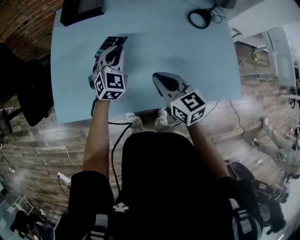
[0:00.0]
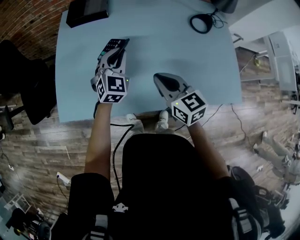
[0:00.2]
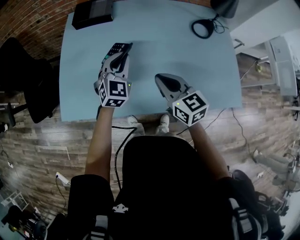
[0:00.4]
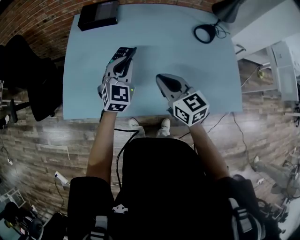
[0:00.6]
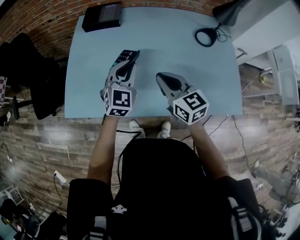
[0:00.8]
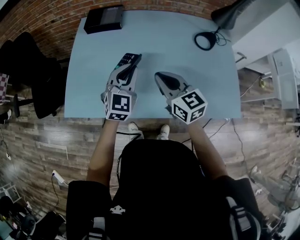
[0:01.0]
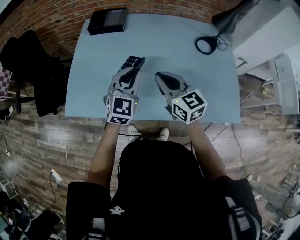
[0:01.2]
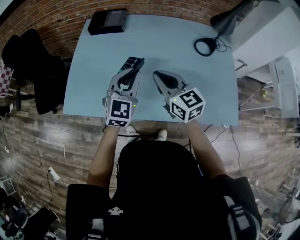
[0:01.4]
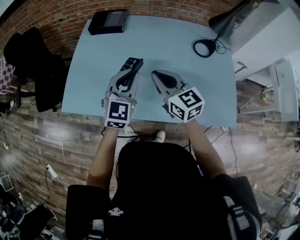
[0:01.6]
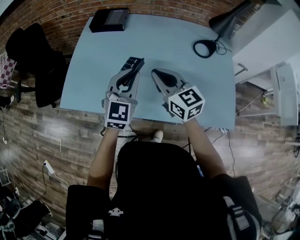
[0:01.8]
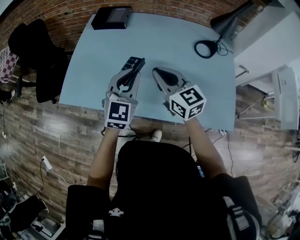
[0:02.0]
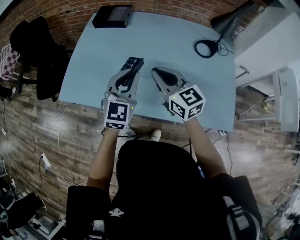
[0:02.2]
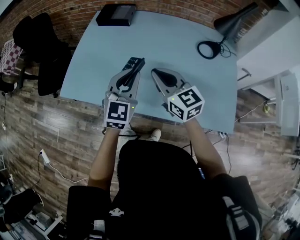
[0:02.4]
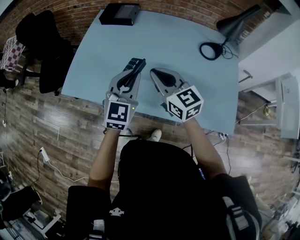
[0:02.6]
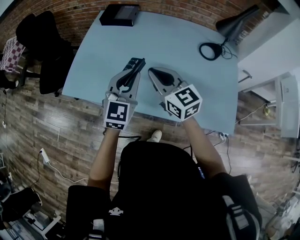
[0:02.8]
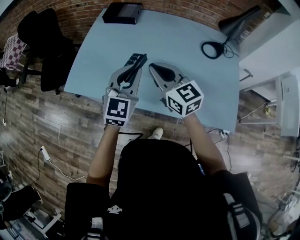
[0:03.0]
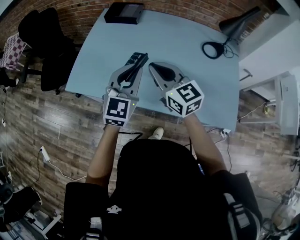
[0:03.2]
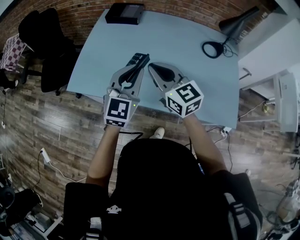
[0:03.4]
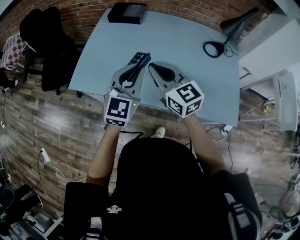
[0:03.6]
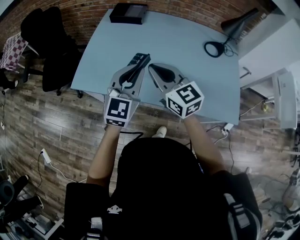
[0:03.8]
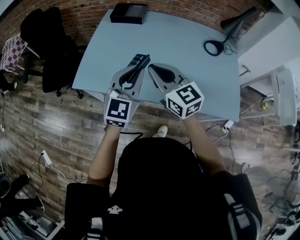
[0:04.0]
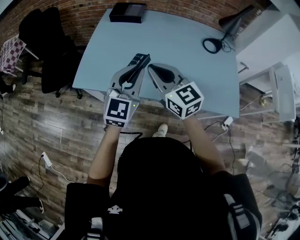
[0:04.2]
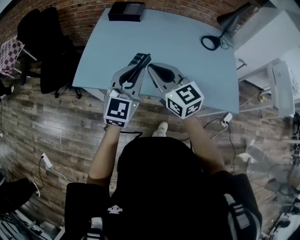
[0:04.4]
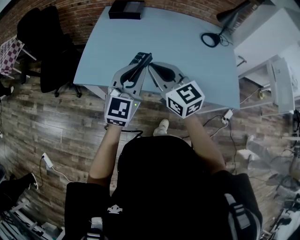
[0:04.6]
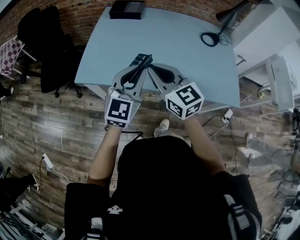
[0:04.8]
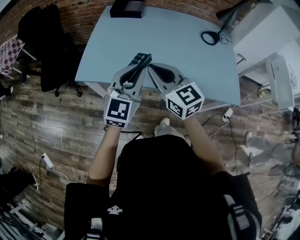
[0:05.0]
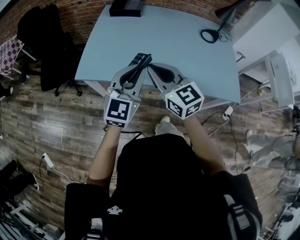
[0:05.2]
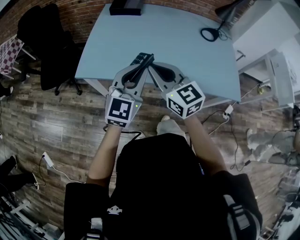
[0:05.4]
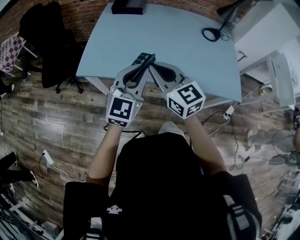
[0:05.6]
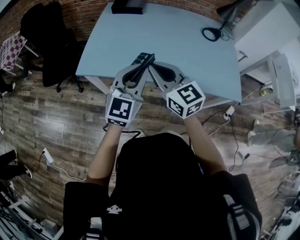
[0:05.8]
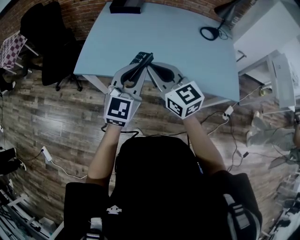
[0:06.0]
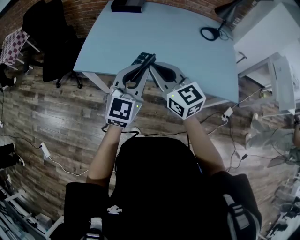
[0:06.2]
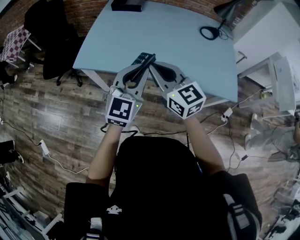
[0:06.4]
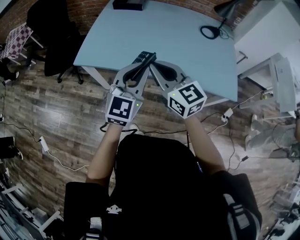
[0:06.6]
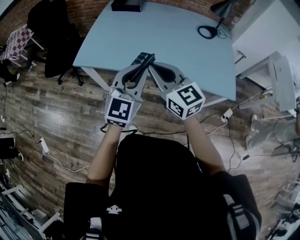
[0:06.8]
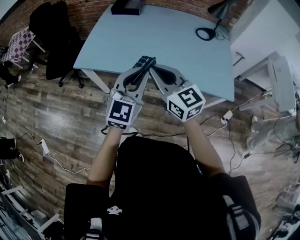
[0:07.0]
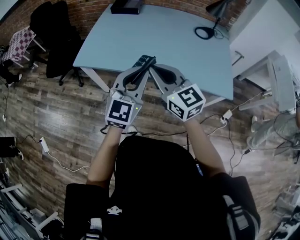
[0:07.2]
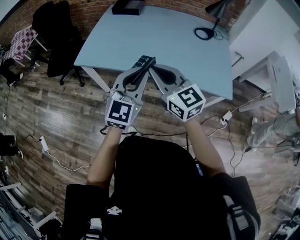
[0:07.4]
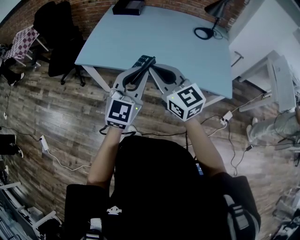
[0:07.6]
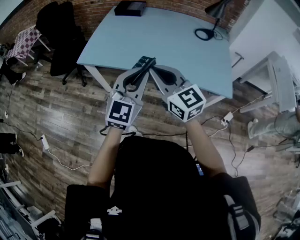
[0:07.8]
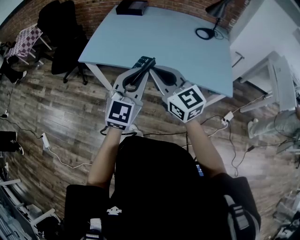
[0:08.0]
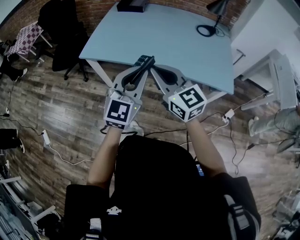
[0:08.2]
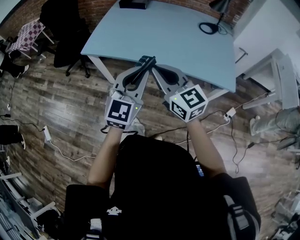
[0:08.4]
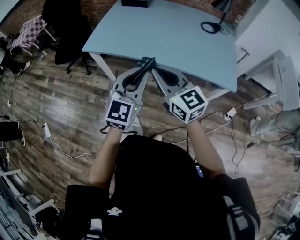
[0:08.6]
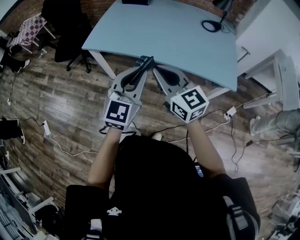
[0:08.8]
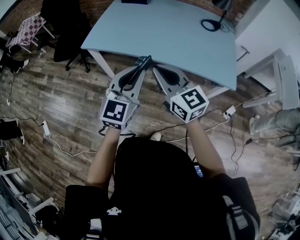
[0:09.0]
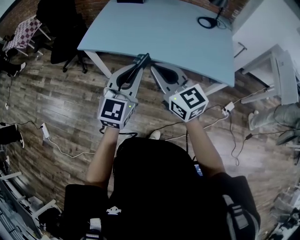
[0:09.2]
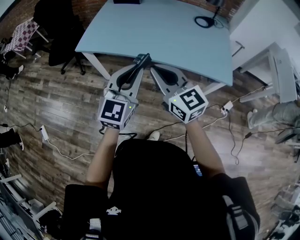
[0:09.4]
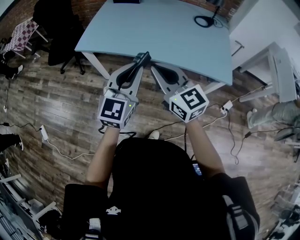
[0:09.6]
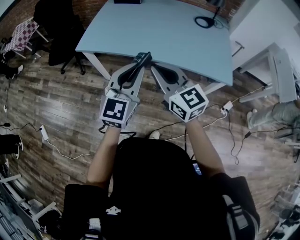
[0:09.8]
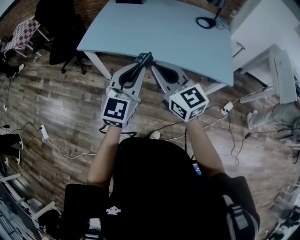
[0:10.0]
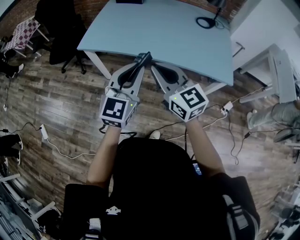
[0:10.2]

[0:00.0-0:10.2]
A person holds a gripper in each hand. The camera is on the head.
0:00.0 to 0:01.4: The right gripper heads upward, covering about 10 cm. The left gripper is displaced upward and backward by about 15 cm.
0:01.4 to 0:03.0: The left gripper moves backward, about 5 cm.
0:03.0 to 0:04.4: Both grippers move to the left and backward, about 15 cm.
0:04.4 to 0:05.8: Both grippers travel together backward, some 5 cm.
0:05.8 to 0:07.2: Both grippers move backward and to the right, approximately 15 cm.
0:07.2 to 0:08.8: Both grippers move backward, roughly 10 cm.
0:08.8 to 0:10.2: There are only small adjustments of the grippers.

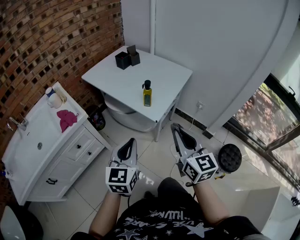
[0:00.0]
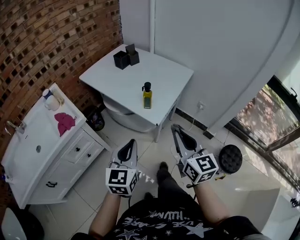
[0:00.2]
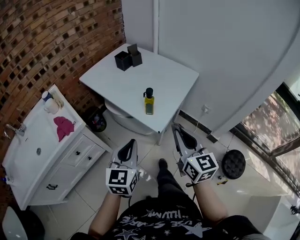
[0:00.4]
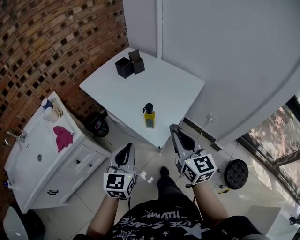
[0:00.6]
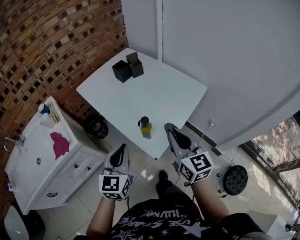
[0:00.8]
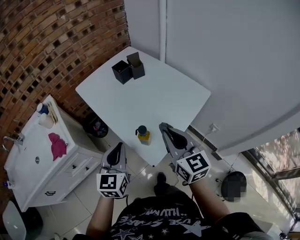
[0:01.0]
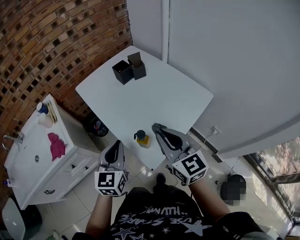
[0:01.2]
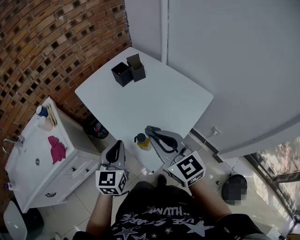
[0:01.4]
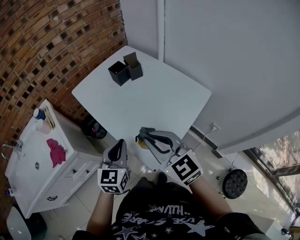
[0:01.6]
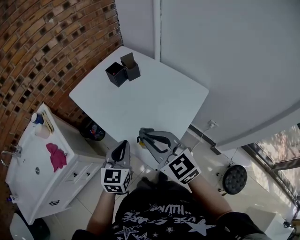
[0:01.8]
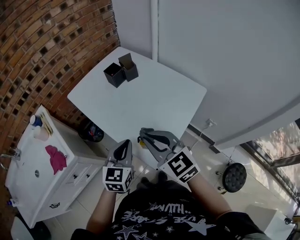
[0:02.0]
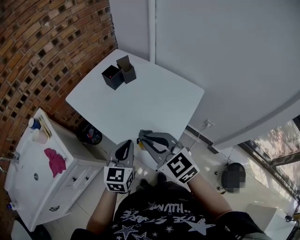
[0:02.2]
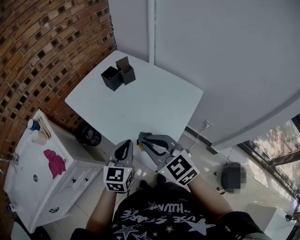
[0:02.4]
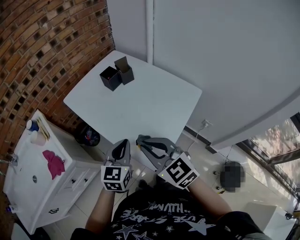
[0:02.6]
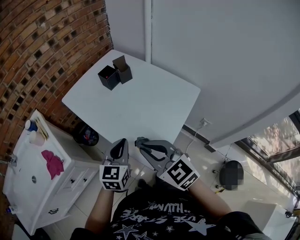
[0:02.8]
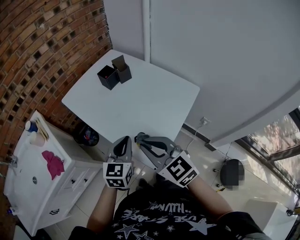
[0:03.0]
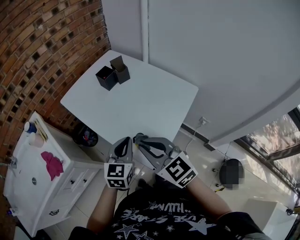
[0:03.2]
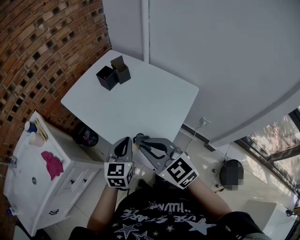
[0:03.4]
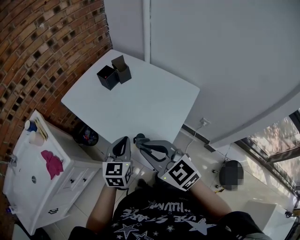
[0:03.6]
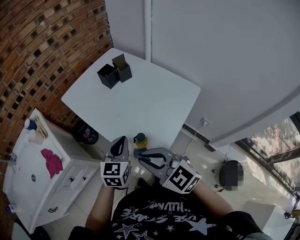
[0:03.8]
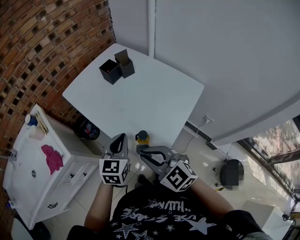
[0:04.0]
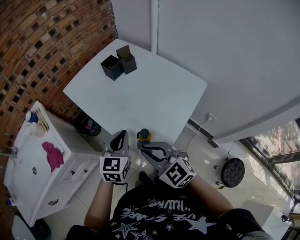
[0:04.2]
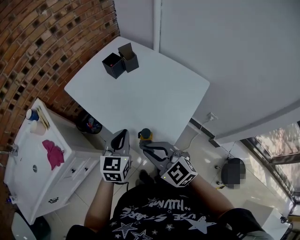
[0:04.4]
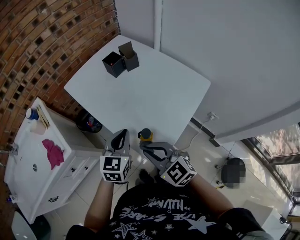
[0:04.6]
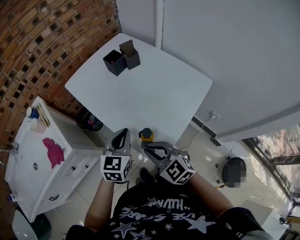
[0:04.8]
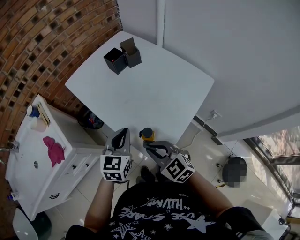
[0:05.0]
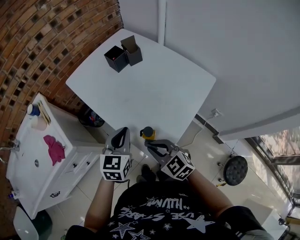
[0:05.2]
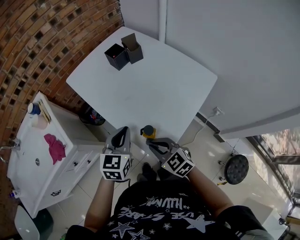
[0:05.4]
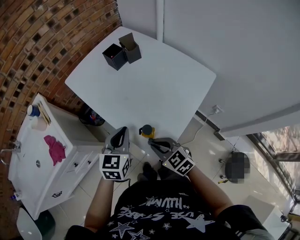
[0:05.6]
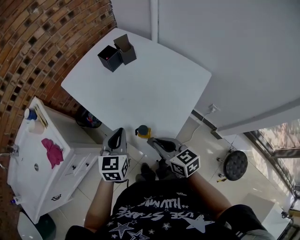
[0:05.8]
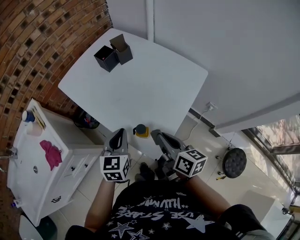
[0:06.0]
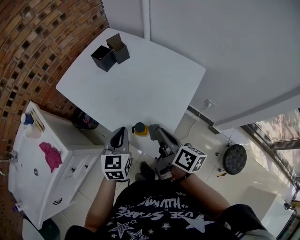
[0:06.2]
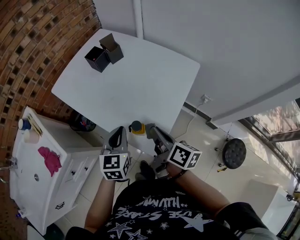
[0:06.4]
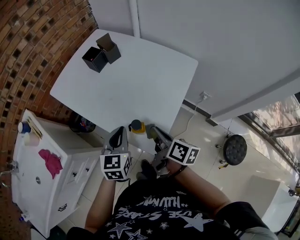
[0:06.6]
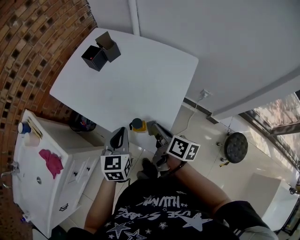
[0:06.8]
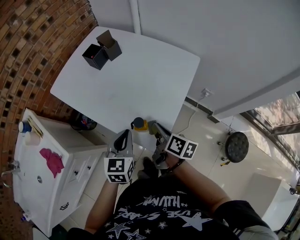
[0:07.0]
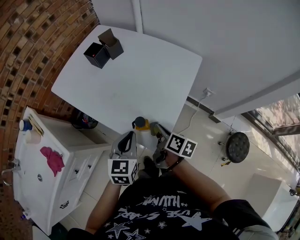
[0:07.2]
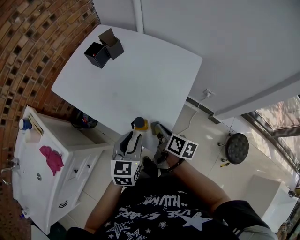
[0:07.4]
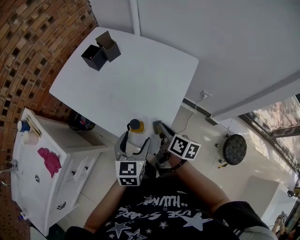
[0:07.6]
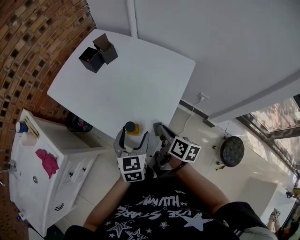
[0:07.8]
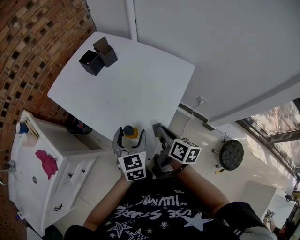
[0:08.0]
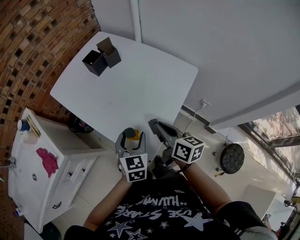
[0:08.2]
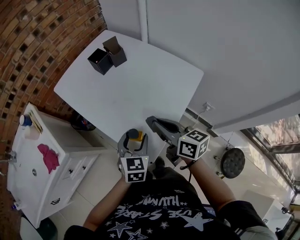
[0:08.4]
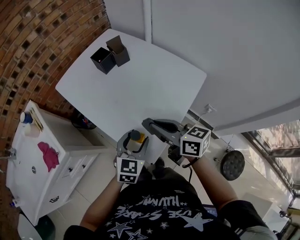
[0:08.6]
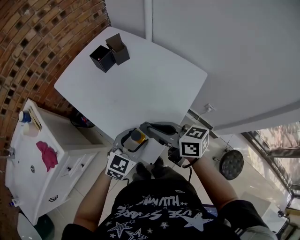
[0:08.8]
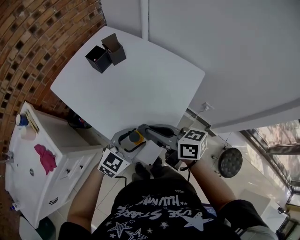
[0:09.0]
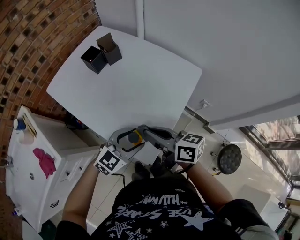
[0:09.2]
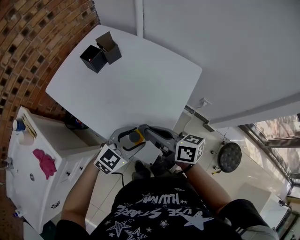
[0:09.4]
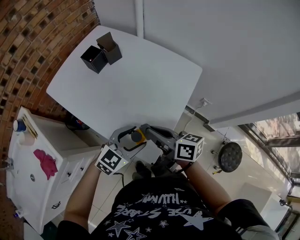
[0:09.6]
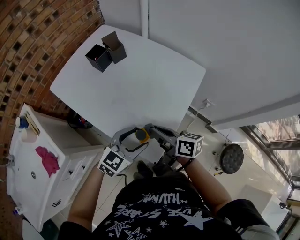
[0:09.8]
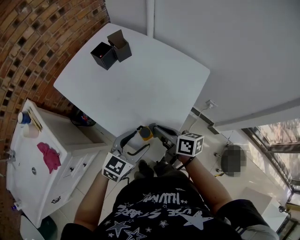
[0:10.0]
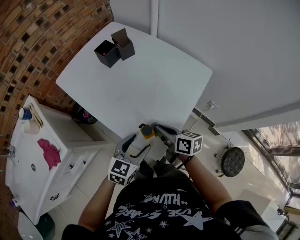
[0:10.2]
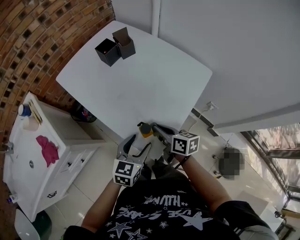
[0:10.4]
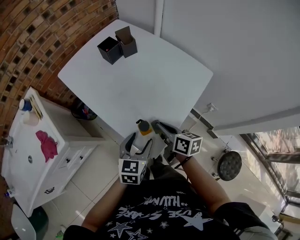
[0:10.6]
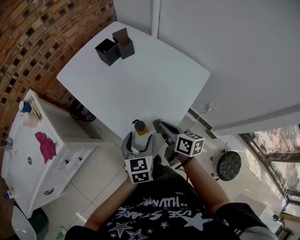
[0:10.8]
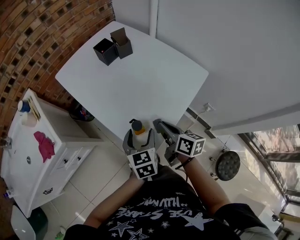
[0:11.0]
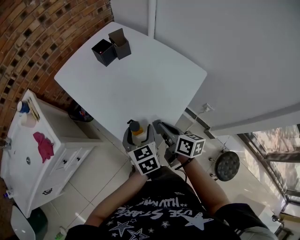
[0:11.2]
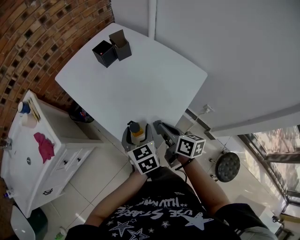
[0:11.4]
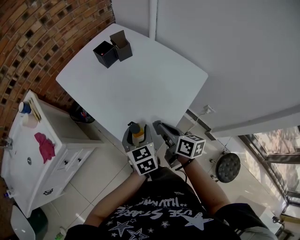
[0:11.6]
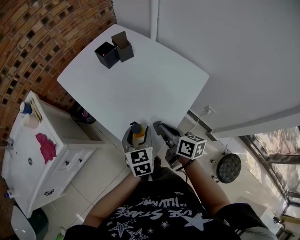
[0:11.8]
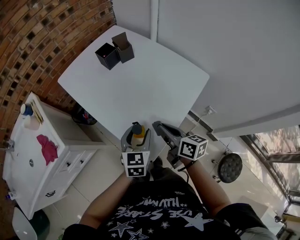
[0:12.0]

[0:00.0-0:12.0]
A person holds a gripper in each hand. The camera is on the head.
0:00.0 to 0:01.6: The two grippers go about 25 cm forward. The right gripper rotates approximately 30 degrees.
0:01.6 to 0:03.0: There are only small adjustments of the grippers.
0:03.0 to 0:04.4: The right gripper moves downward, about 5 cm.
0:04.4 to 0:06.0: The right gripper moves to the right, roughly 10 cm, and rotates around the line of its fingers by approximately 60 degrees, clockwise from behind.
0:06.0 to 0:07.6: The left gripper travels to the right by about 10 cm, and opens its fingers. The right gripper shifts about 5 cm downward, and rotates roughly 20 degrees.
0:07.6 to 0:09.0: The right gripper heads upward and to the left, covering some 10 cm, and swivels some 50 degrees. Meanwhile the left gripper changes its angle by roughly 30 degrees.
0:09.0 to 0:10.4: The left gripper swivels approximately 30 degrees. The right gripper is displaced downward by approximately 10 cm.
0:10.4 to 0:12.0: The right gripper shifts roughly 5 cm upward. Meanwhile the left gripper moves about 5 cm.

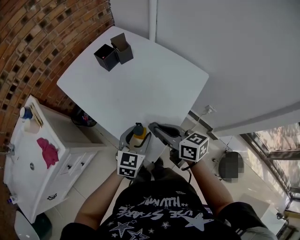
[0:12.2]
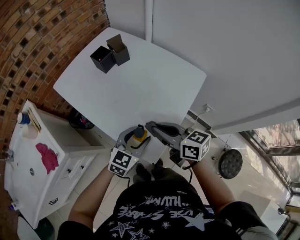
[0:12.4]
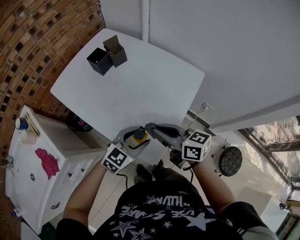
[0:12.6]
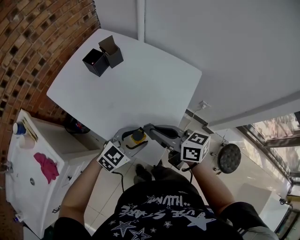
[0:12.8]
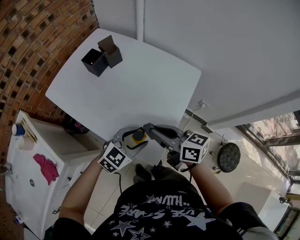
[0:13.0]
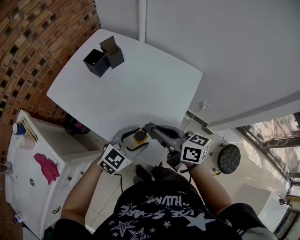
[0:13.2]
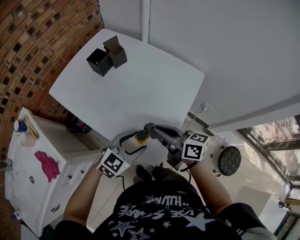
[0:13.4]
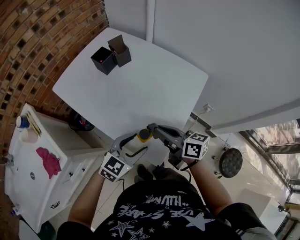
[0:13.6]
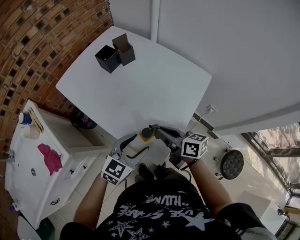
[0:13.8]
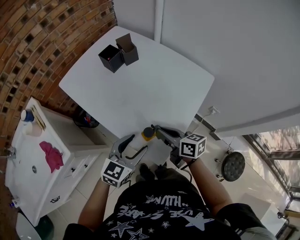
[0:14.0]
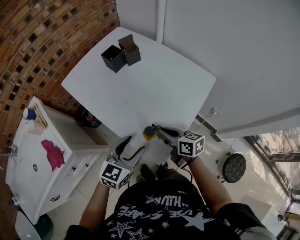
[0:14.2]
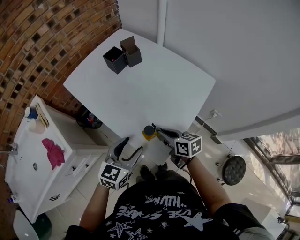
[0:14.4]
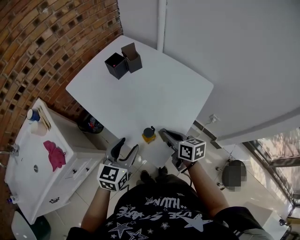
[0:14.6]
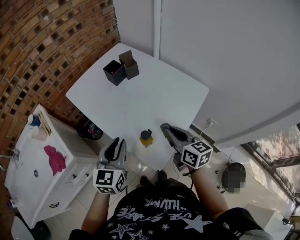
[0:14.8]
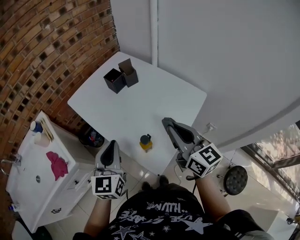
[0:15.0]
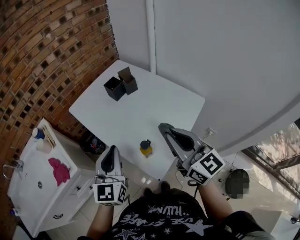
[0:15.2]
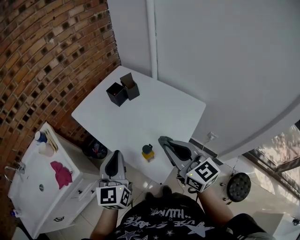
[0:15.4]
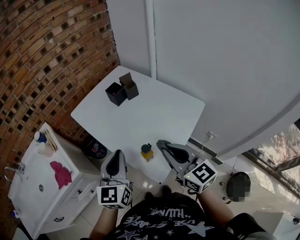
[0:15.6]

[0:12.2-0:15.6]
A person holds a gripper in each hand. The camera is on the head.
0:13.8 to 0:15.6: The left gripper goes some 20 cm upward and to the left, turns by roughly 40 degrees, and closes. Meanwhile the right gripper goes up and down, about 25 cm each way, reversing 2 times, and changes its angle by roughly 40 degrees.
